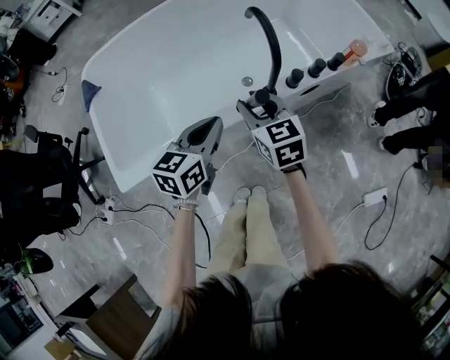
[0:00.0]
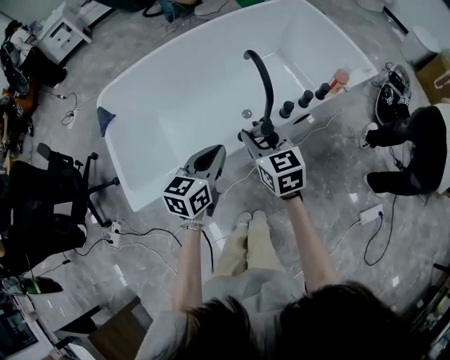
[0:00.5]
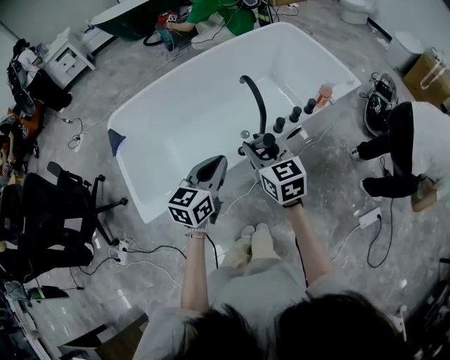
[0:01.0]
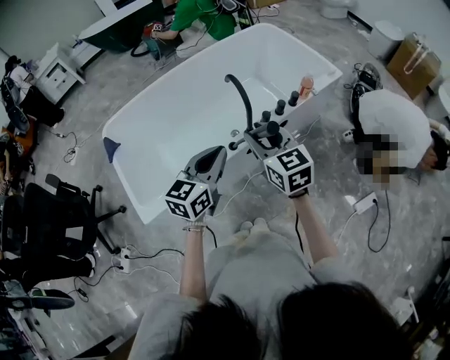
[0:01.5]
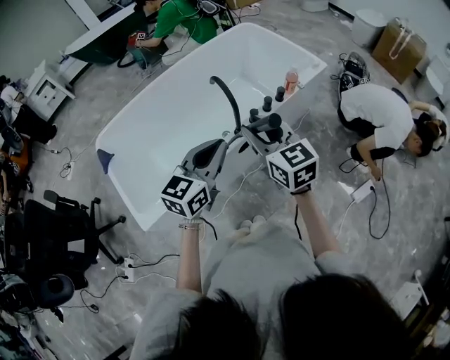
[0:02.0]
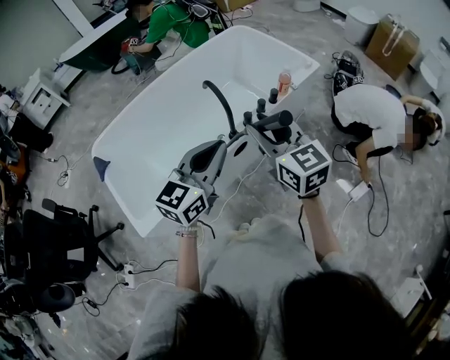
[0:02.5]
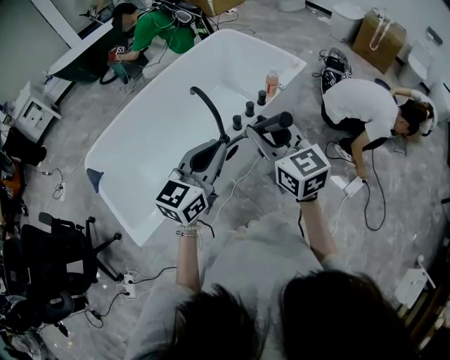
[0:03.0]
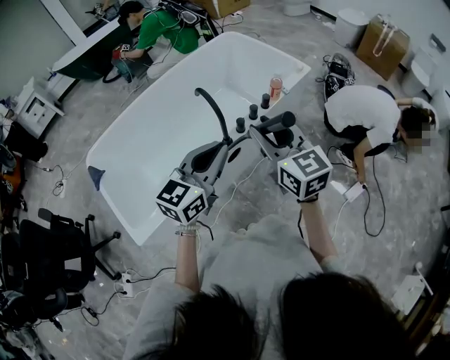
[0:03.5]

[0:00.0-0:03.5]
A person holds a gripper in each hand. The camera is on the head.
0:00.0 to 0:02.0: The right gripper heads upward and backward, covering some 30 cm. Meanwhile the left gripper travels upward by approximately 25 cm, and turns by roughly 30 degrees.
0:02.0 to 0:03.5: The left gripper changes place by roughly 5 cm, while the right gripper is displaced to the right by some 5 cm.

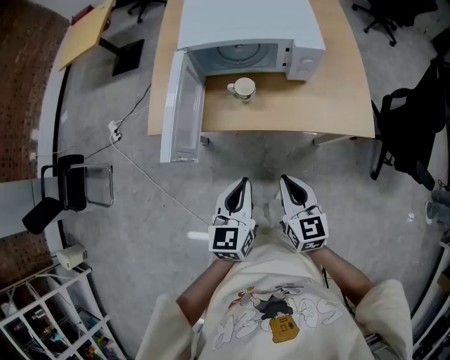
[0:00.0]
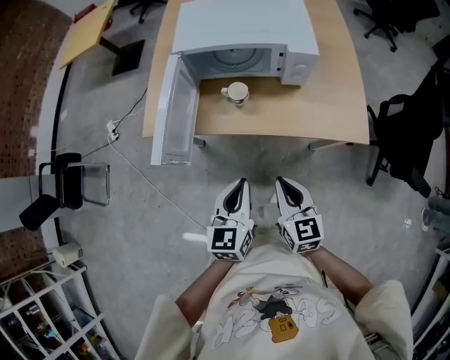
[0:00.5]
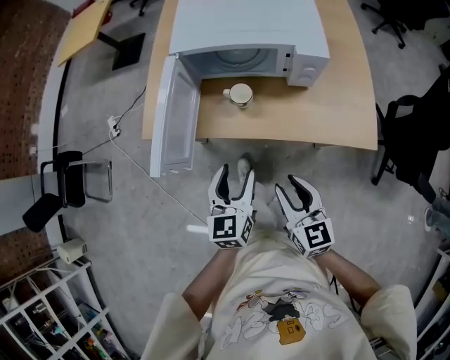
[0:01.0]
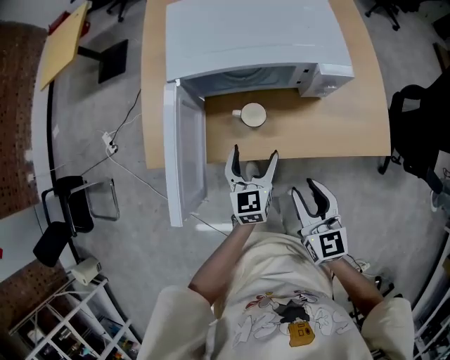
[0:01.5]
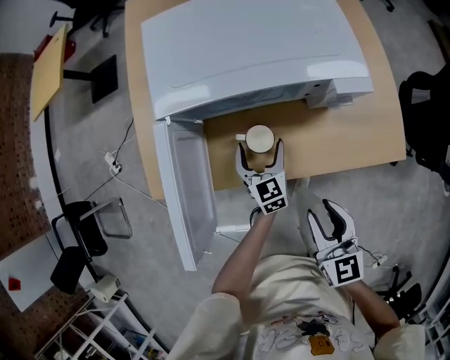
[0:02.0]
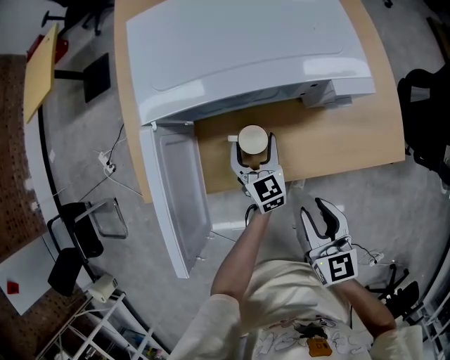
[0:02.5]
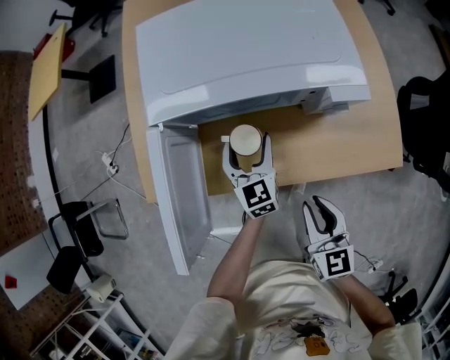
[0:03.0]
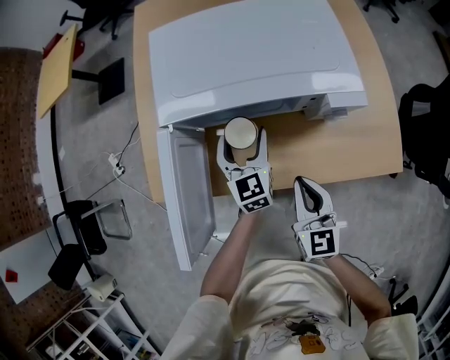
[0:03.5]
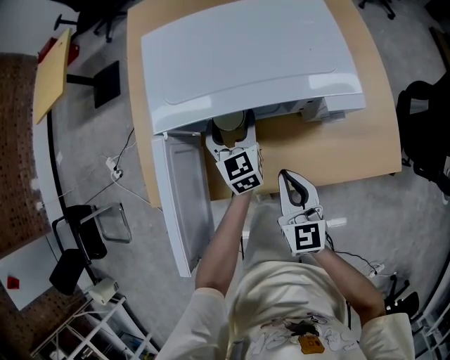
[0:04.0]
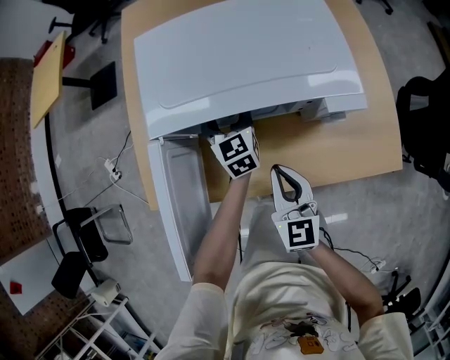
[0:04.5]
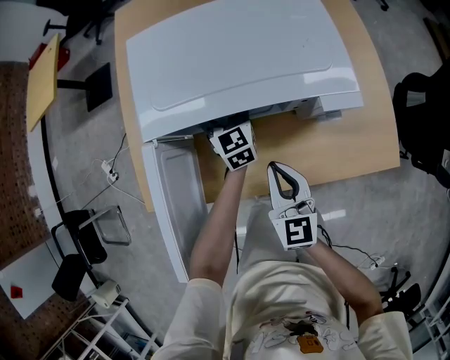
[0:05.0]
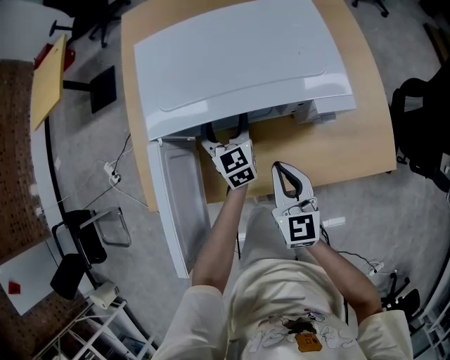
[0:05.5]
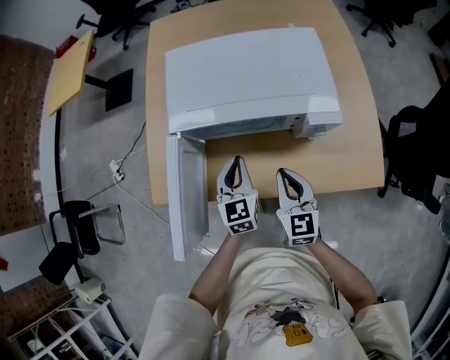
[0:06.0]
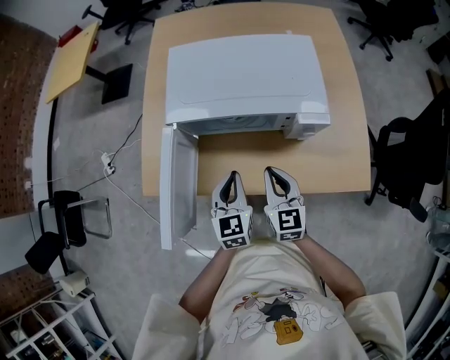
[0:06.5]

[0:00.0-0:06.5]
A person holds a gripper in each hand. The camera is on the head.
0:00.0 to 0:02.0: The right gripper travels forward by approximately 15 cm, and opens its fingers. The left gripper travels forward and downward by roughly 35 cm, and opens its fingers.
0:02.0 to 0:04.5: The left gripper goes roughly 15 cm forward and upward; the right gripper travels forward by approximately 15 cm, and closes up.
0:04.5 to 0:06.5: The left gripper heads backward, covering roughly 20 cm, and closes.

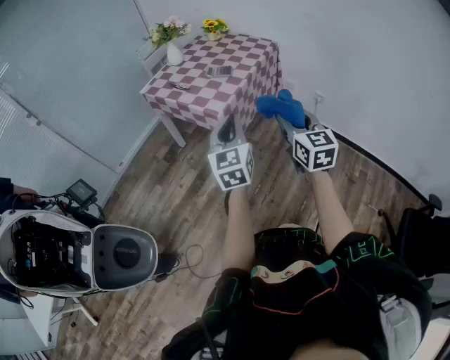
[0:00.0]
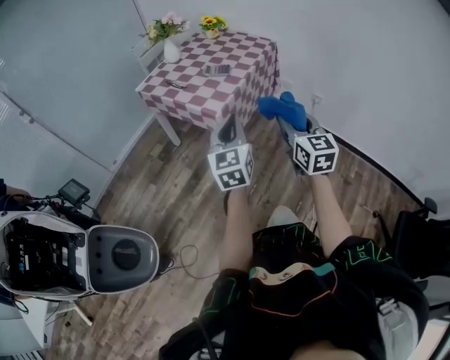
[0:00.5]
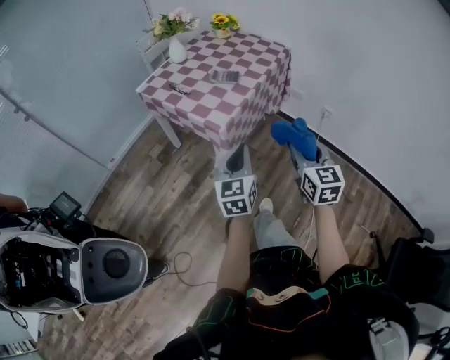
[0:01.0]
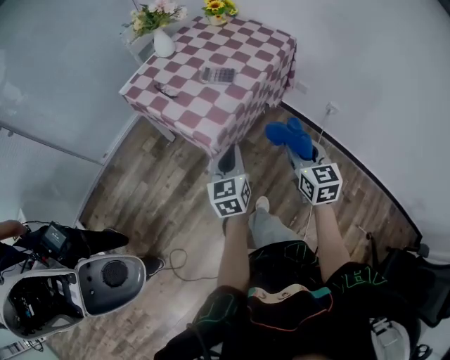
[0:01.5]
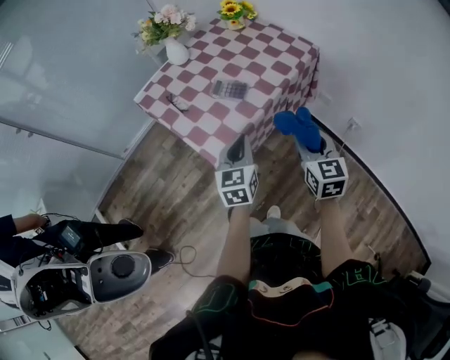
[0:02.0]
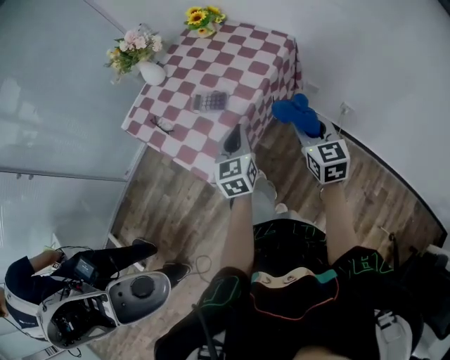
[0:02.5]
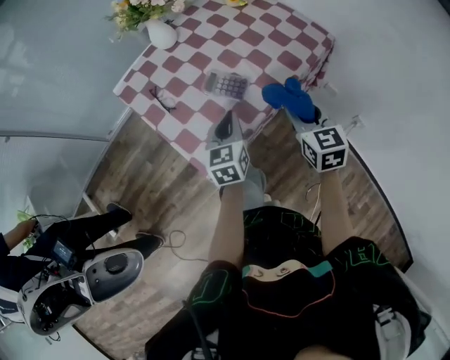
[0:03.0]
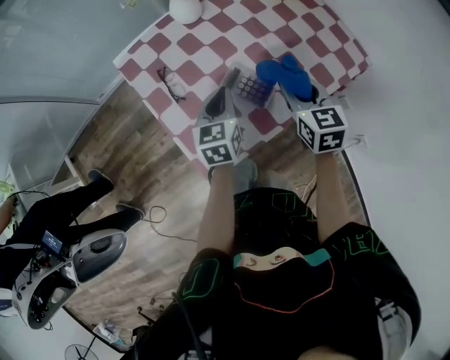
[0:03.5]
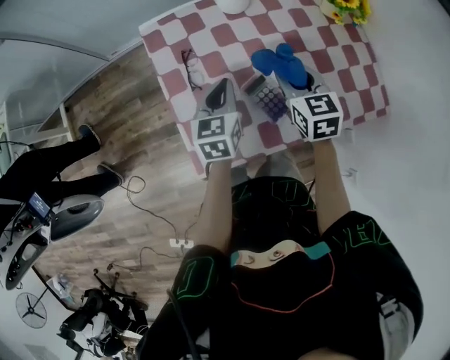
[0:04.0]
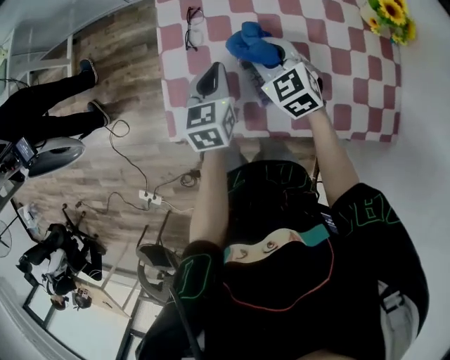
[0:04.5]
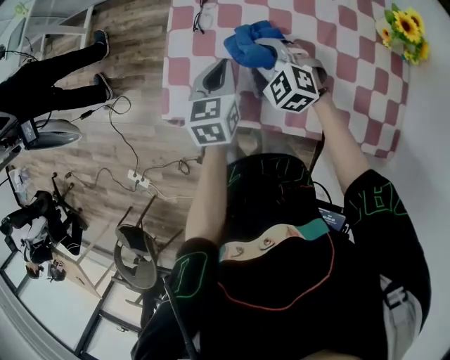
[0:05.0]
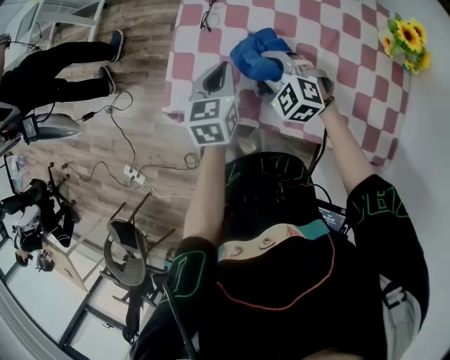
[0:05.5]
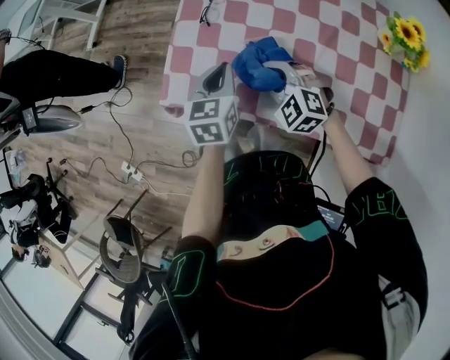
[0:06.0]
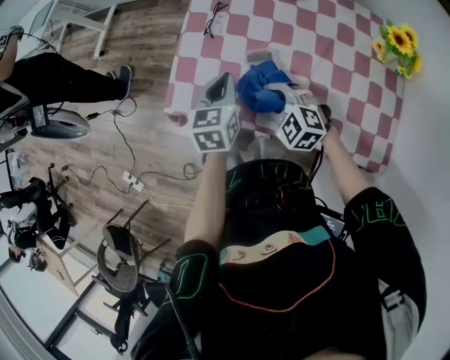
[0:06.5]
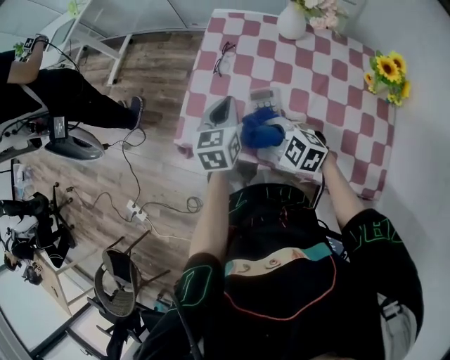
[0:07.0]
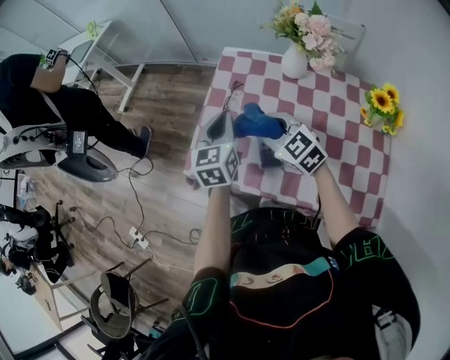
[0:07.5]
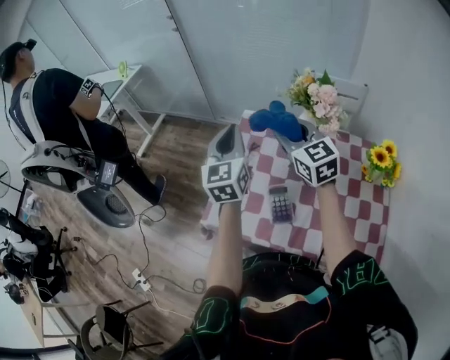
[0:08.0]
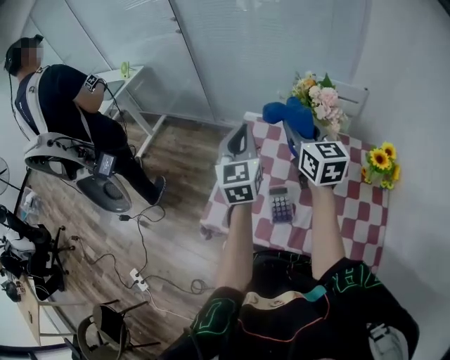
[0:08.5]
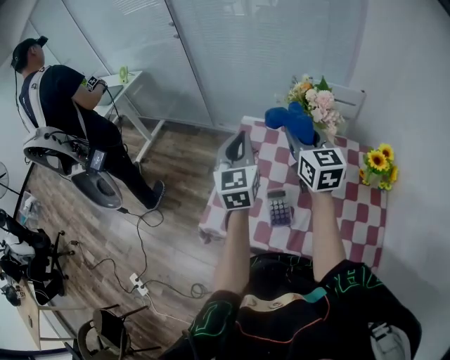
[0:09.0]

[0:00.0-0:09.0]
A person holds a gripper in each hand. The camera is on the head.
0:00.0 to 0:02.0: The grippers both shift forward by some 30 cm.
0:02.0 to 0:04.5: The left gripper moves approximately 30 cm, and turns by approximately 50 degrees, while the right gripper ends up about 40 cm from where it was, and turns by about 80 degrees.
0:04.5 to 0:07.0: The right gripper changes place by approximately 15 cm, and turns by some 40 degrees, while the left gripper moves upward, roughly 5 cm.
0:07.0 to 0:09.0: The right gripper heads upward, forward and to the right, covering roughly 35 cm, and tilts its fingers some 40 degrees upward; the left gripper shifts approximately 20 cm upward and forward, and rotates roughly 30 degrees.

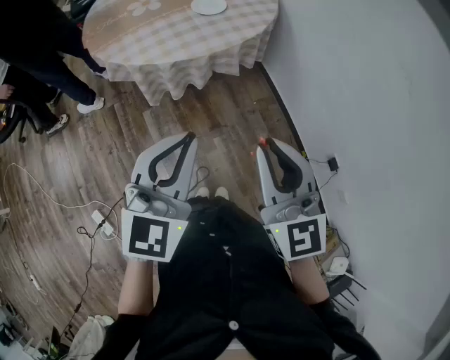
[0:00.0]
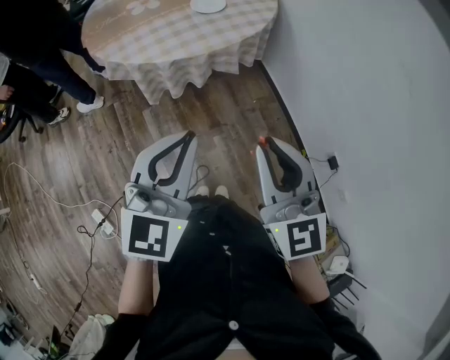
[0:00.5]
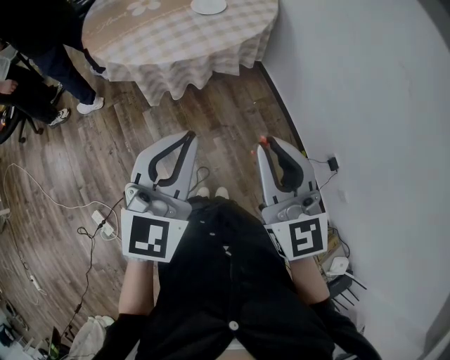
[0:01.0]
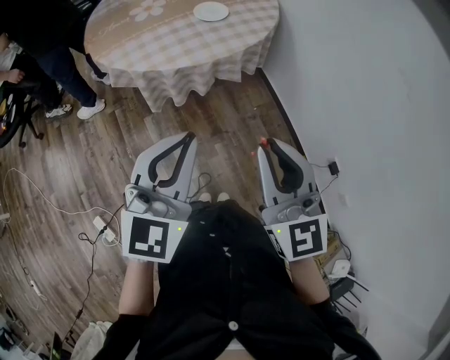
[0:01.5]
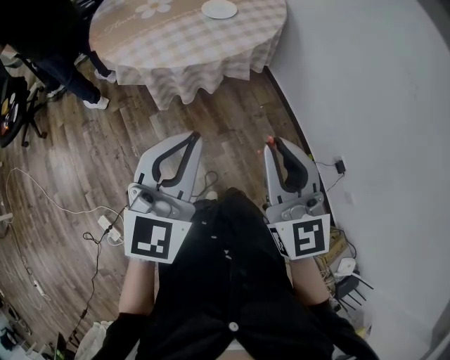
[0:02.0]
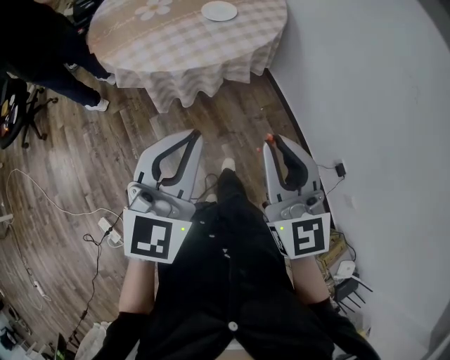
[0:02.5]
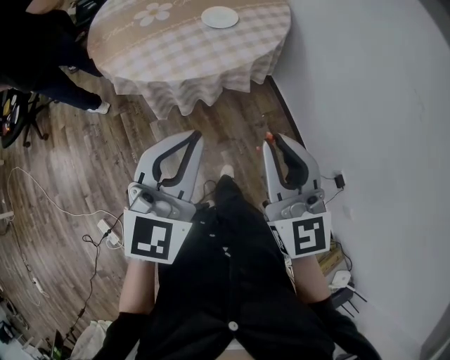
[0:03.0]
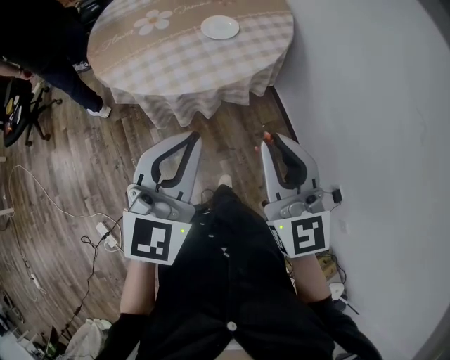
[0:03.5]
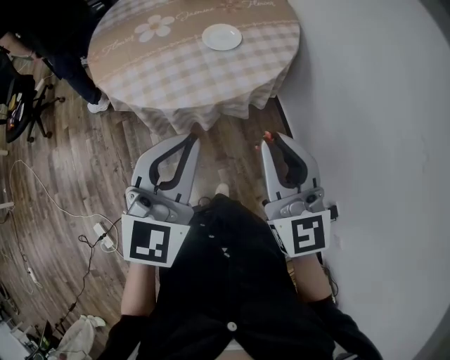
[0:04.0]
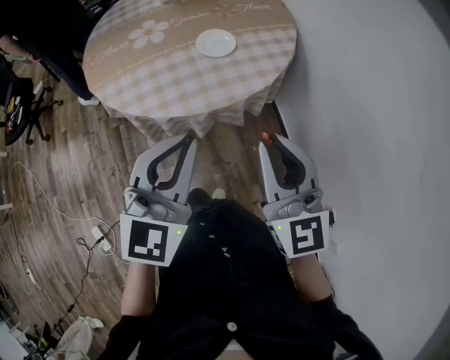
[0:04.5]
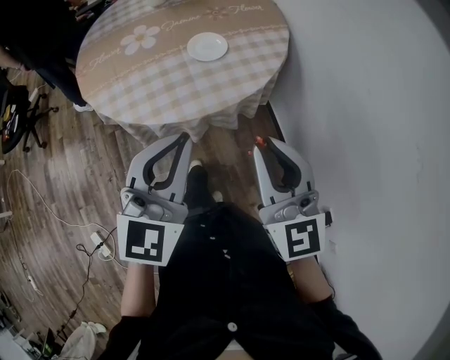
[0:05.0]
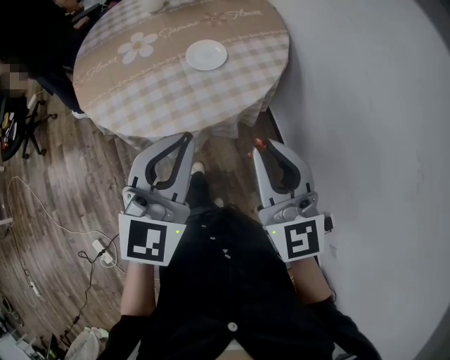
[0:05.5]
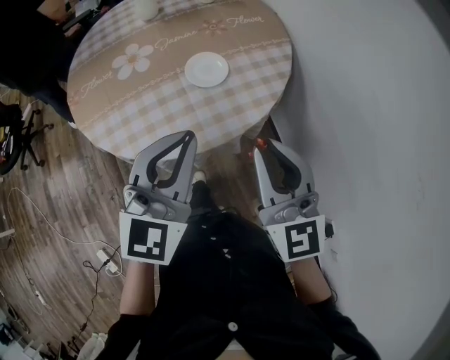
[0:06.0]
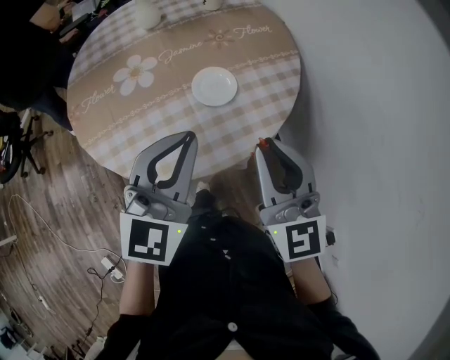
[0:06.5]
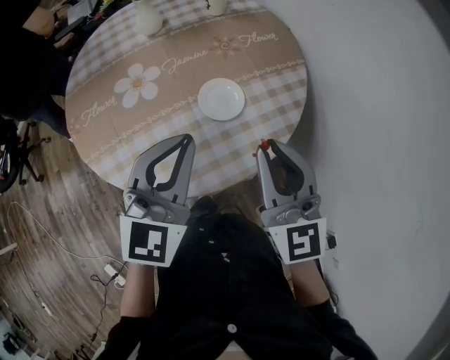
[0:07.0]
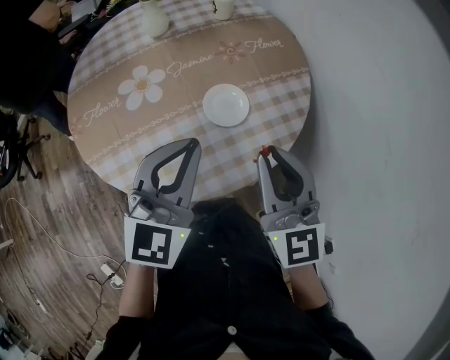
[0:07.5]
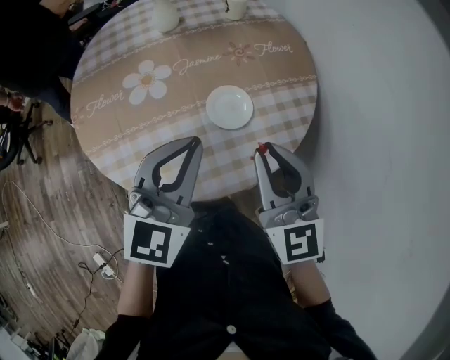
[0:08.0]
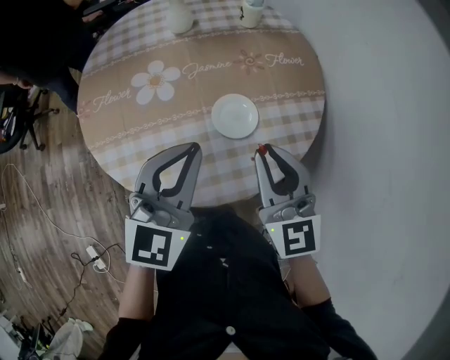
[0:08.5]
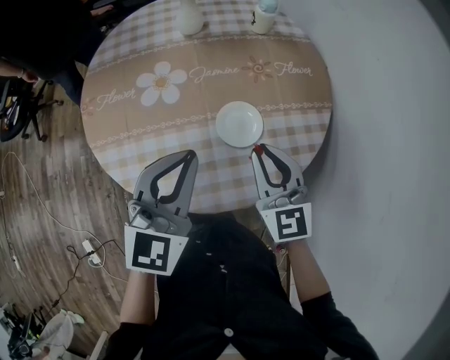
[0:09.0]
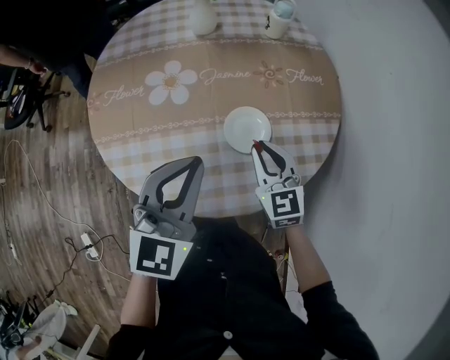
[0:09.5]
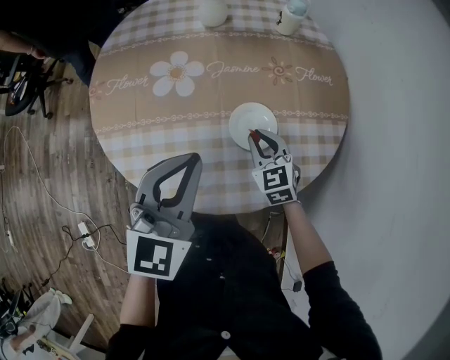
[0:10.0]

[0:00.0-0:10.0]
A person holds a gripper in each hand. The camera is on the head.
0:00.0 to 0:02.0: There are only small adjustments of the grippers.
0:02.0 to 0:04.0: Both grippers travel together forward, some 20 cm.
0:04.0 to 0:06.0: Both grippers travel together forward, approximately 15 cm.
0:06.0 to 0:08.0: The grippers both shift forward and to the left by approximately 15 cm.
0:08.0 to 0:10.0: The right gripper shifts roughly 25 cm downward and forward, and turns by about 30 degrees; the left gripper ends up roughly 5 cm from where it was.
